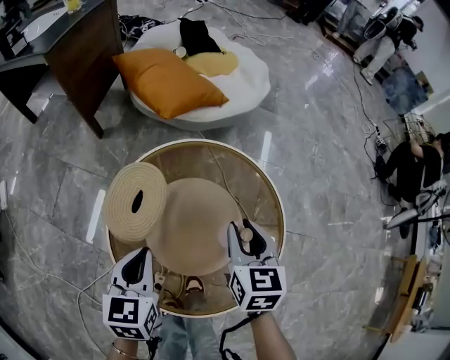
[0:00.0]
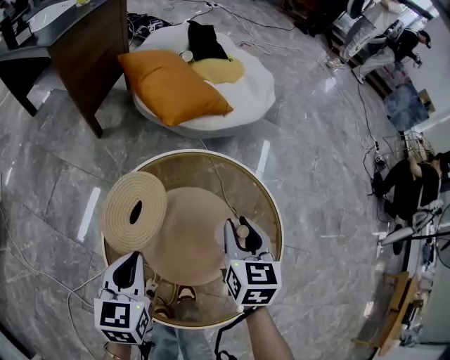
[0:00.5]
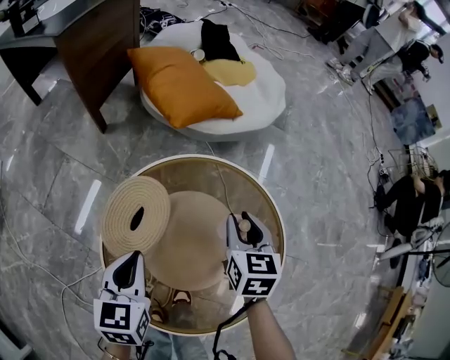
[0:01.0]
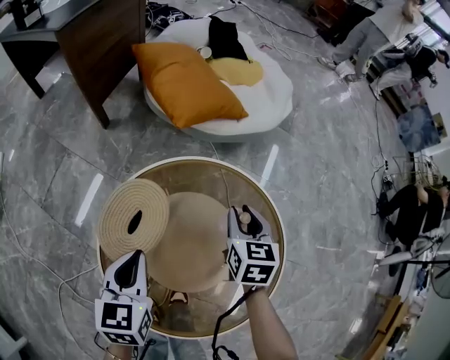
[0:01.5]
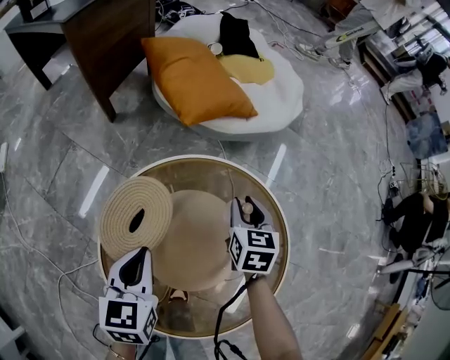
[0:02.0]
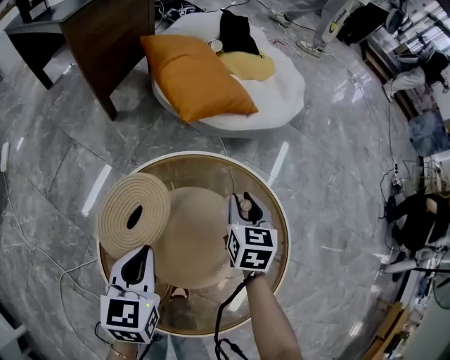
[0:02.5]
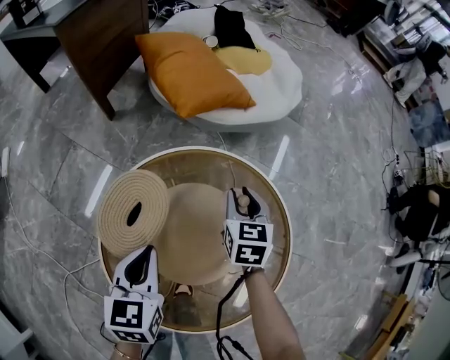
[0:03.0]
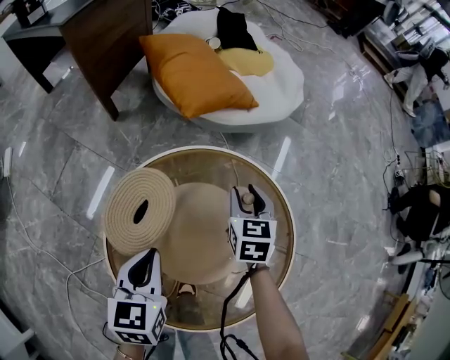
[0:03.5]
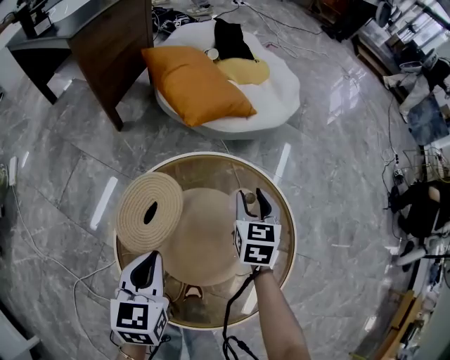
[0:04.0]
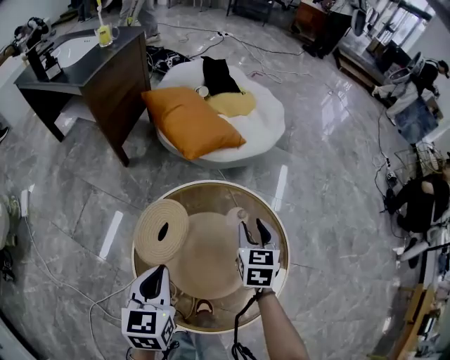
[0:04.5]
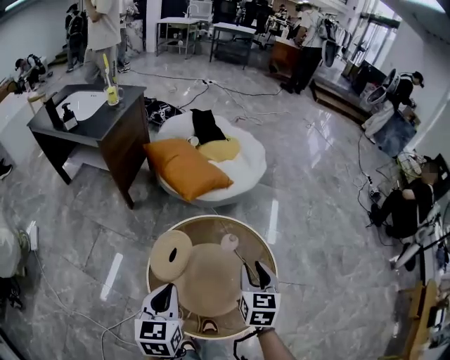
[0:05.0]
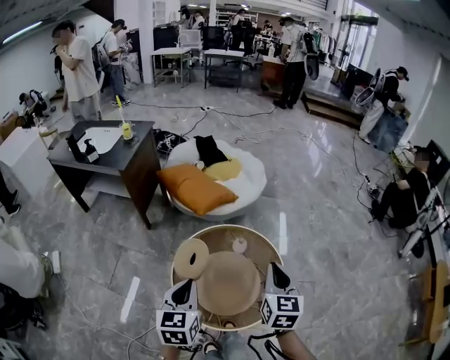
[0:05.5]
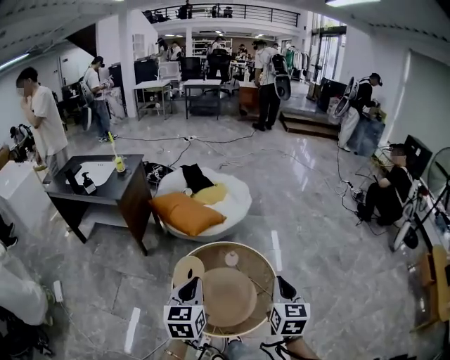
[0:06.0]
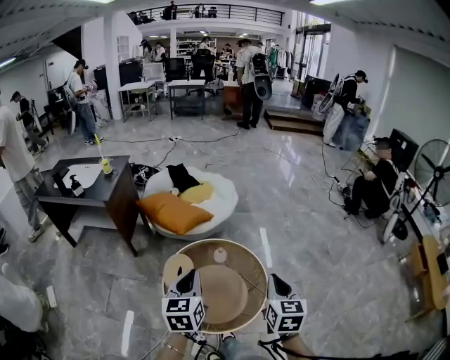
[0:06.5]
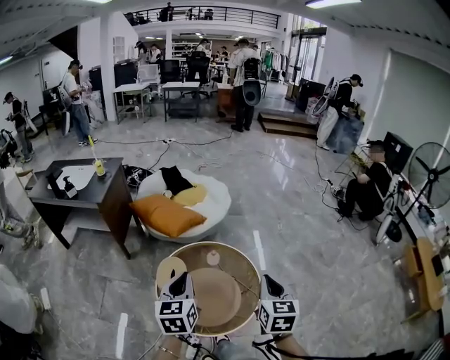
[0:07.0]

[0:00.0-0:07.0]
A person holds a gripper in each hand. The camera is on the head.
0:00.0 to 0:02.0: The left gripper is displaced forward by approximately 5 cm, while the right gripper shifts approximately 20 cm forward and downward.
0:02.0 to 0:03.5: The grippers move only a little.
0:03.5 to 0:05.0: The left gripper heads upward, covering approximately 20 cm. Meanwhile the right gripper travels upward and backward by roughly 30 cm.
0:05.0 to 0:07.0: The right gripper is displaced upward, backward and to the right by about 30 cm, and closes up; the left gripper moves upward and to the right, some 20 cm.

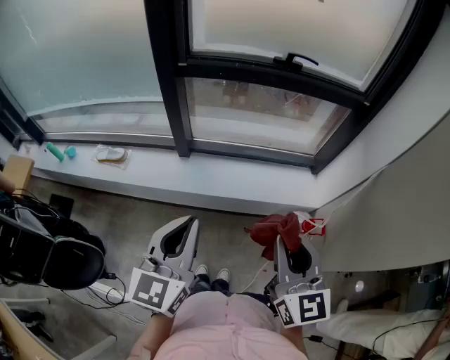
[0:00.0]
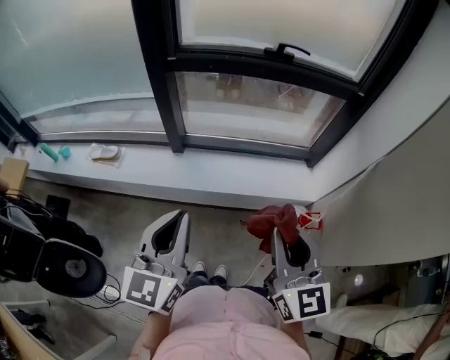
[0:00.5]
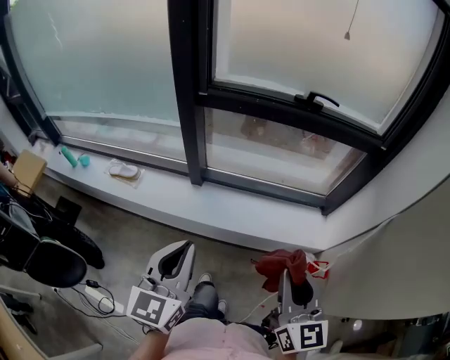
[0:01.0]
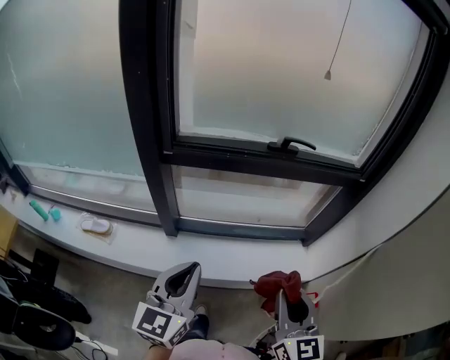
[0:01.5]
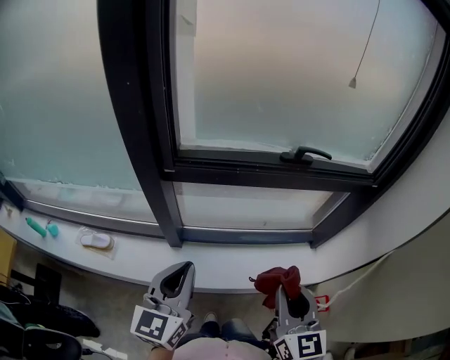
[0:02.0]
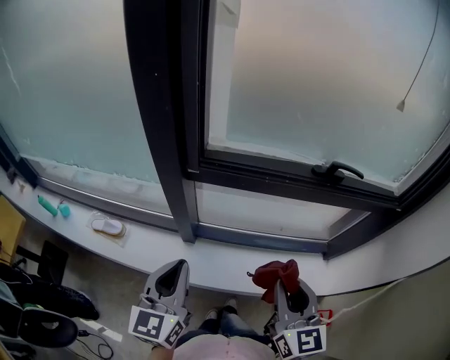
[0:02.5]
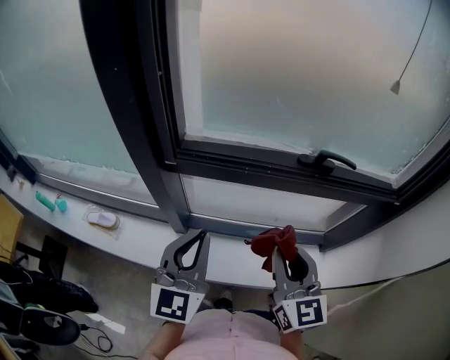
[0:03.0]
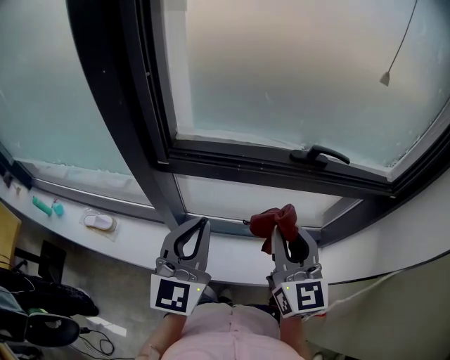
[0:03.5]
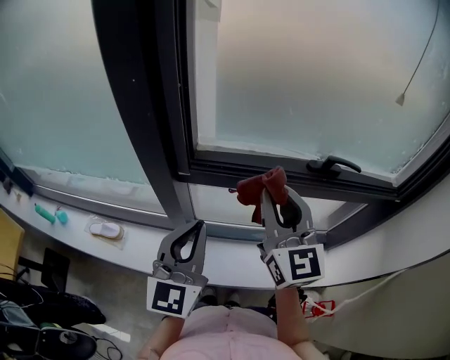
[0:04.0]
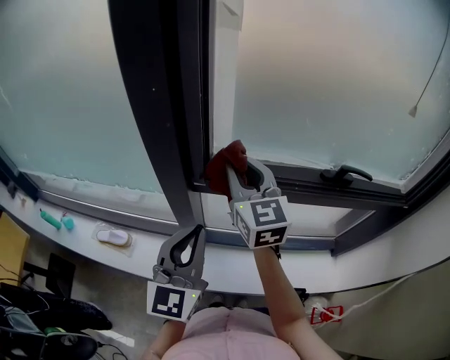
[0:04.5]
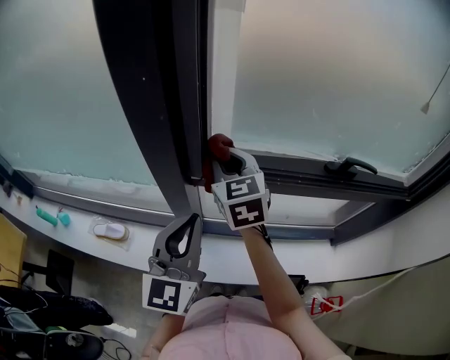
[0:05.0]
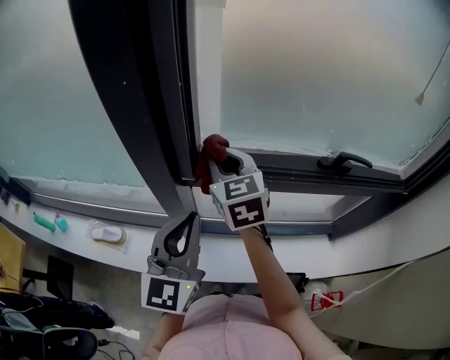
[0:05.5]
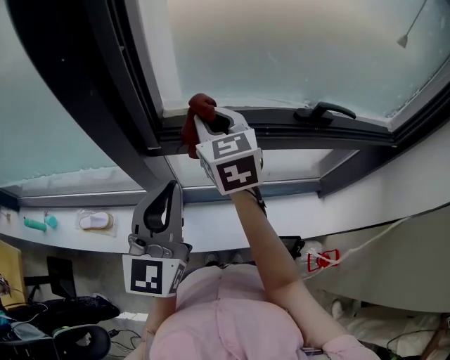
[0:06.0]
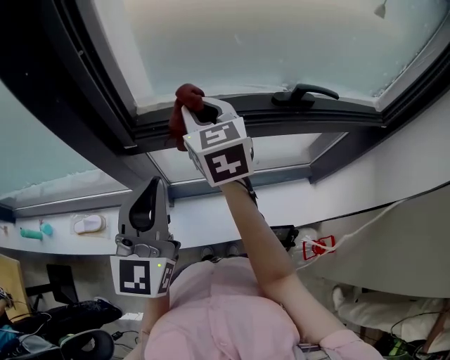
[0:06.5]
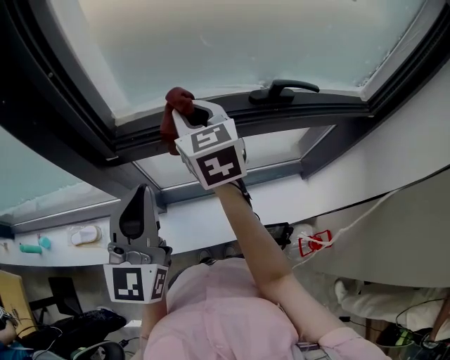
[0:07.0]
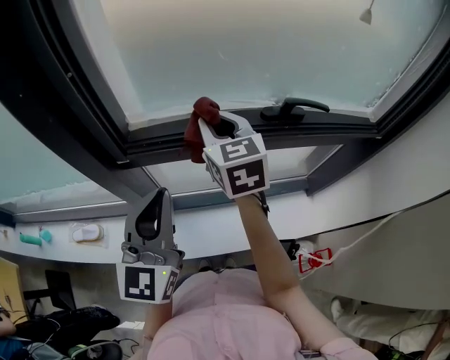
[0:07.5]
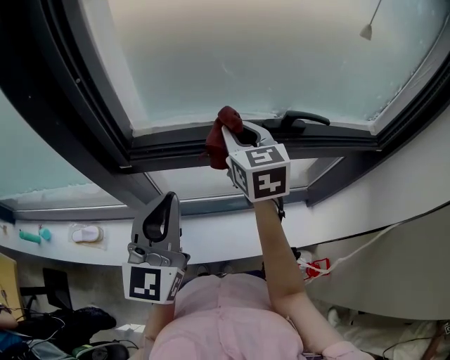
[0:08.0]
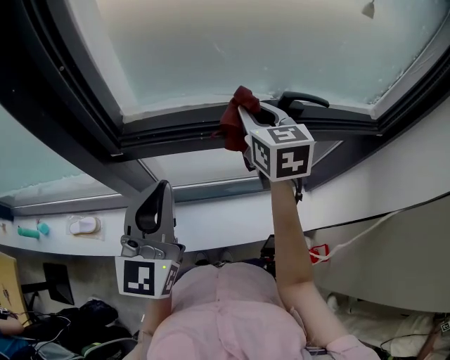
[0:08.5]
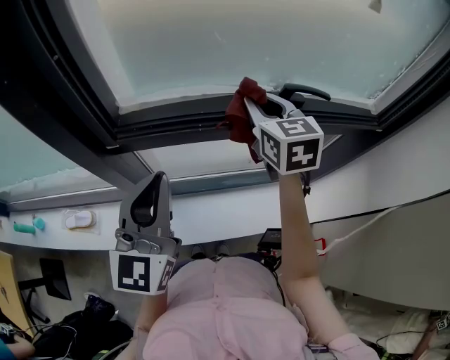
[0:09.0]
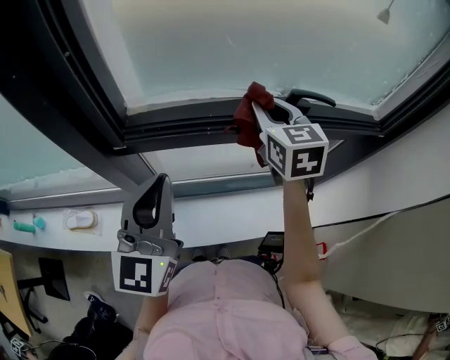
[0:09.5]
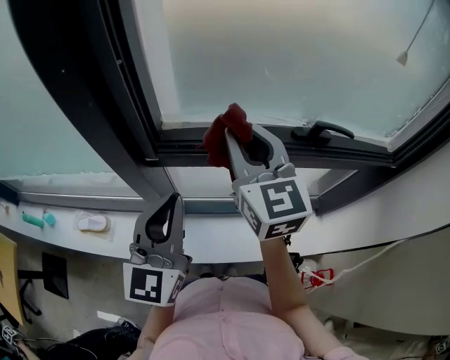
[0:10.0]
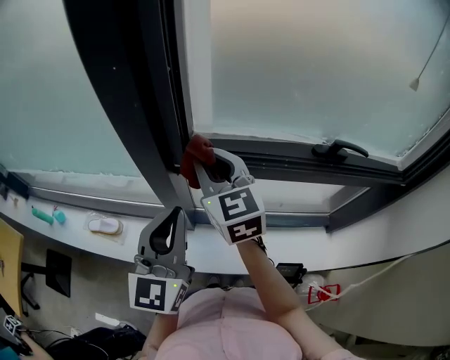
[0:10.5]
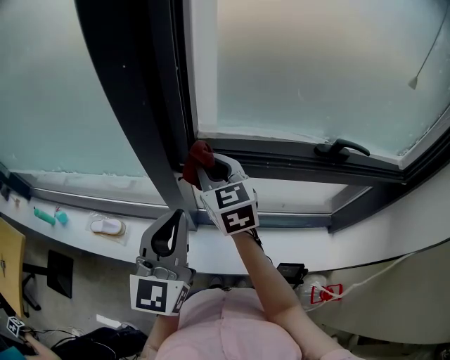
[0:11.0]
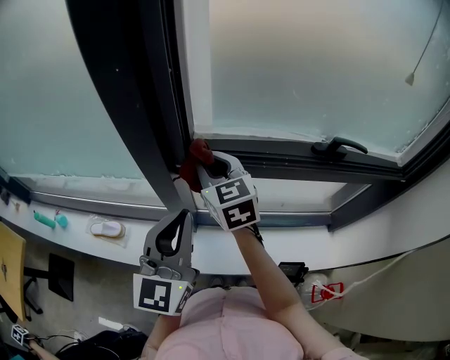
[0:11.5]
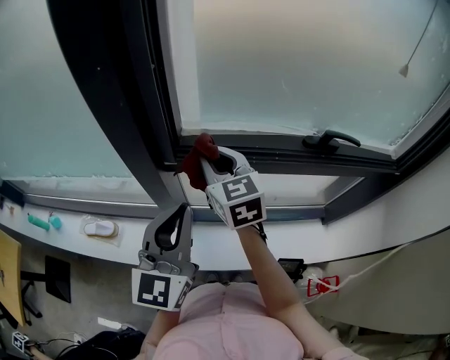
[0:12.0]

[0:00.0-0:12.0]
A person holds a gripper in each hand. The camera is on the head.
0:00.0 to 0:02.0: Both grippers move forward, roughly 30 cm.
0:02.0 to 0:04.0: The right gripper is displaced forward, to the left and upward by approximately 25 cm, and rotates roughly 20 degrees; the left gripper heads forward and upward, covering approximately 15 cm.
0:04.0 to 0:06.0: The right gripper goes approximately 15 cm forward, to the left and downward, and turns by approximately 20 degrees.
0:06.0 to 0:08.0: The left gripper moves to the right, roughly 5 cm. The right gripper is displaced to the right by approximately 15 cm.
0:08.0 to 0:10.0: The right gripper shifts some 10 cm to the left, upward and backward. Meanwhile the left gripper ends up roughly 5 cm from where it was.
0:10.0 to 0:12.0: The right gripper is displaced to the left and downward by roughly 15 cm.

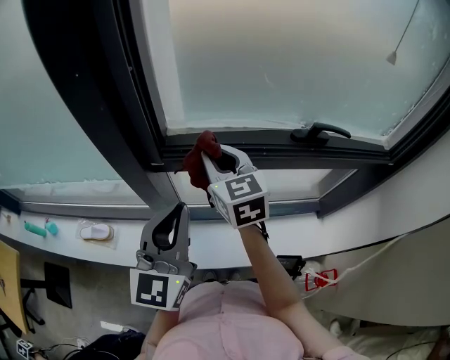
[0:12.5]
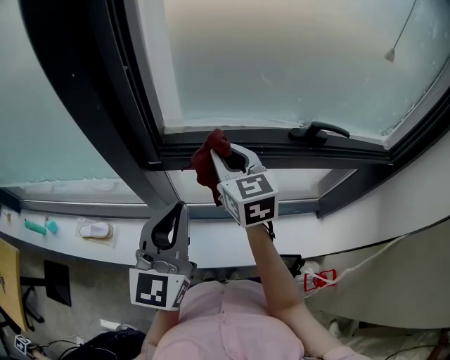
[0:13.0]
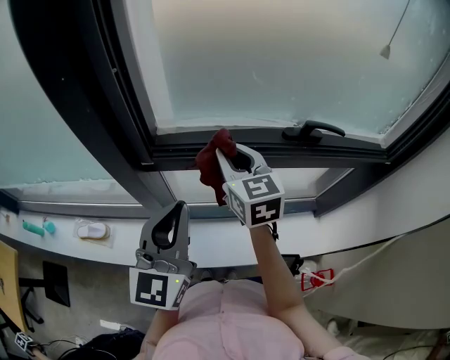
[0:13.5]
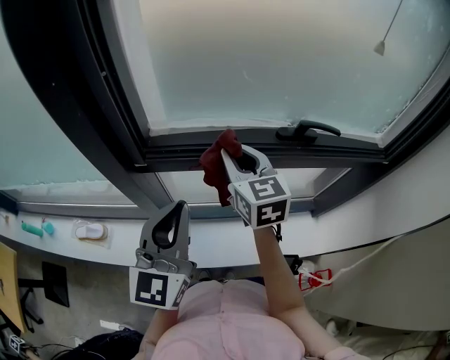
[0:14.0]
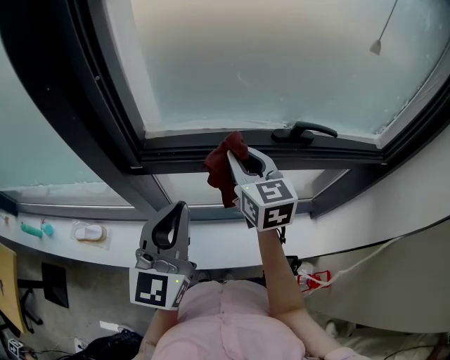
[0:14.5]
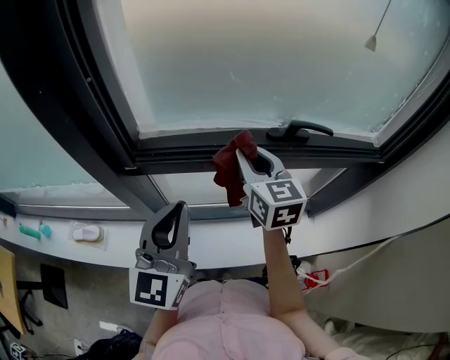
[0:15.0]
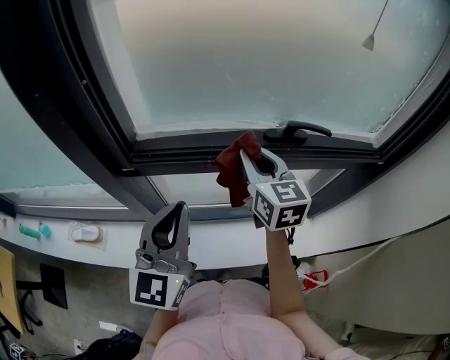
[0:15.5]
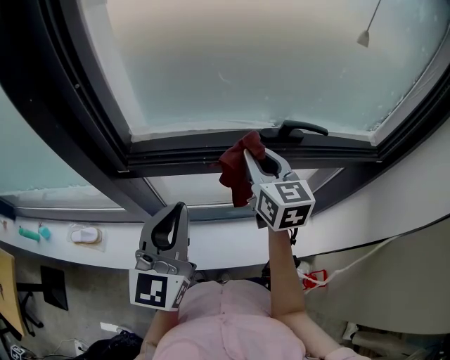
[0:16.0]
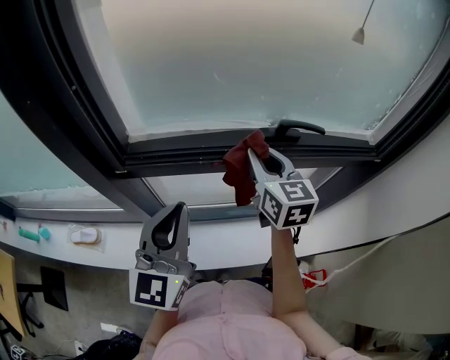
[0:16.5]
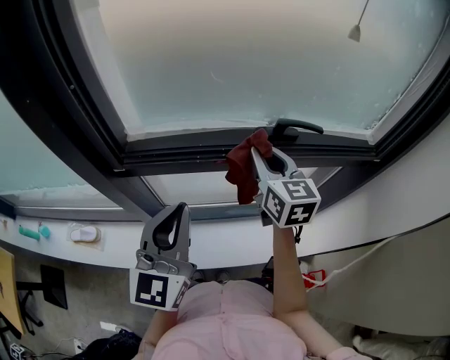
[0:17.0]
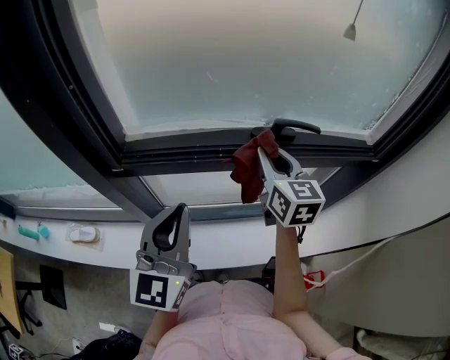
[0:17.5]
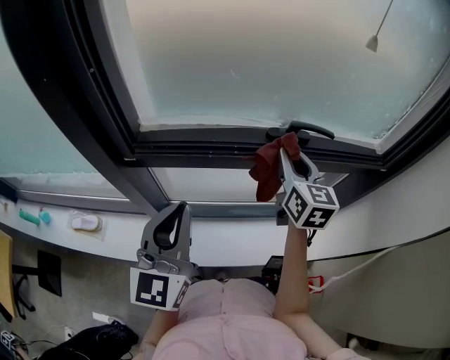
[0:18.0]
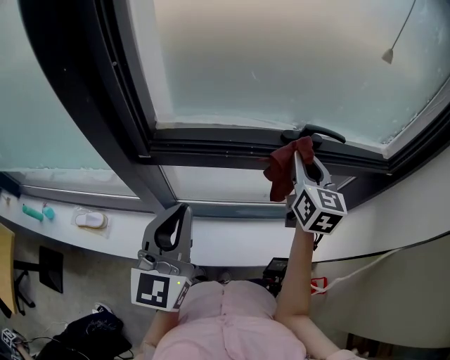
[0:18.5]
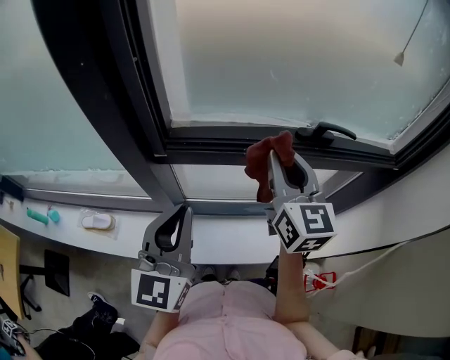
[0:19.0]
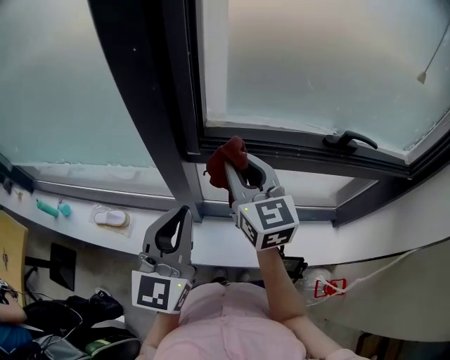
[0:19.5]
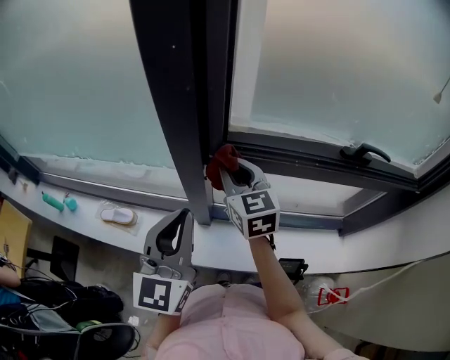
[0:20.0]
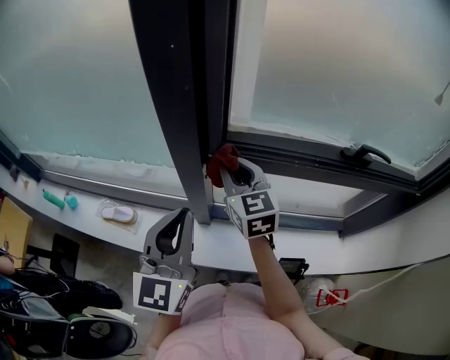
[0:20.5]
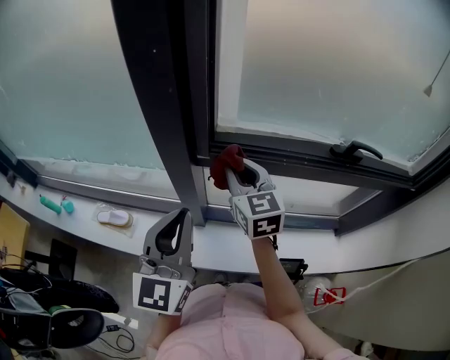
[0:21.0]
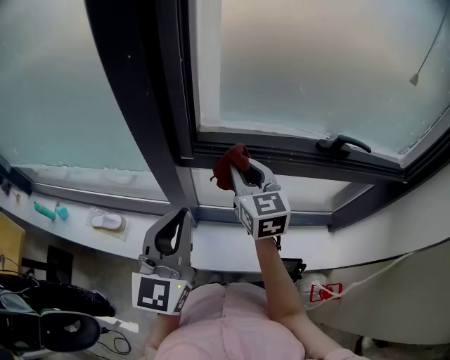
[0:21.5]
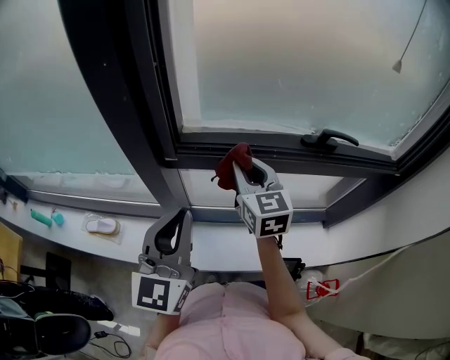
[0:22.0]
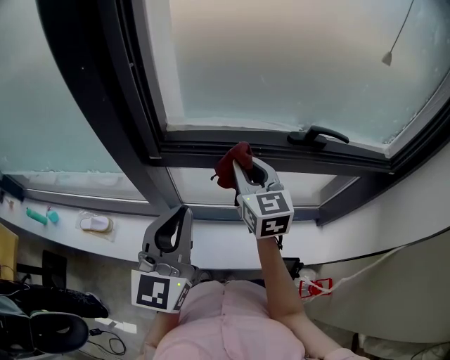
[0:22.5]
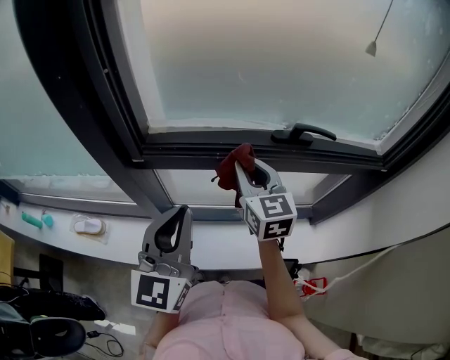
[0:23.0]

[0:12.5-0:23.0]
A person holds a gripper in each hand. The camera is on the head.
0:12.5 to 0:14.5: The right gripper moves to the right, some 10 cm, while the left gripper goes approximately 5 cm to the right.
0:14.5 to 0:16.5: The right gripper travels to the right by approximately 10 cm.
0:16.5 to 0:19.0: The right gripper is displaced to the left, backward and upward by approximately 10 cm, while the left gripper travels to the left by about 10 cm.
0:19.0 to 0:21.0: The left gripper goes roughly 10 cm to the left. The right gripper heads to the left and downward, covering roughly 20 cm.
0:21.0 to 0:23.0: The two grippers go about 15 cm to the right.
